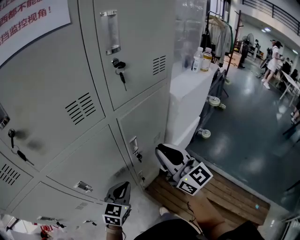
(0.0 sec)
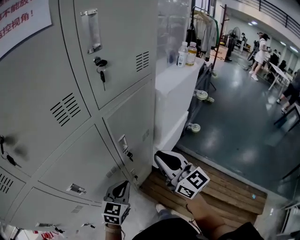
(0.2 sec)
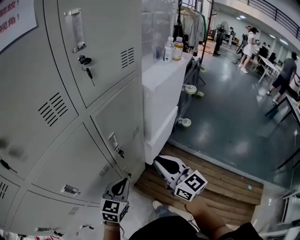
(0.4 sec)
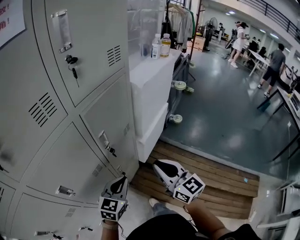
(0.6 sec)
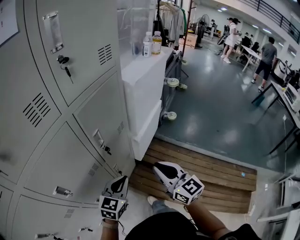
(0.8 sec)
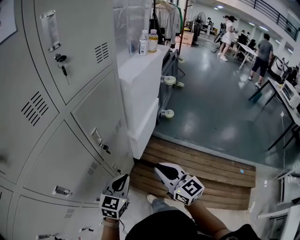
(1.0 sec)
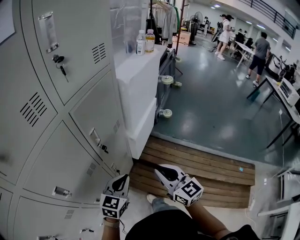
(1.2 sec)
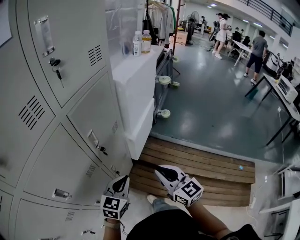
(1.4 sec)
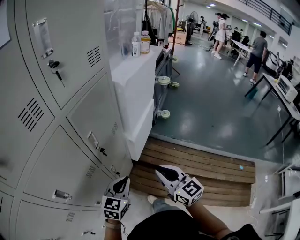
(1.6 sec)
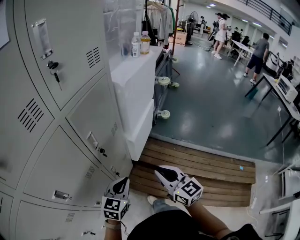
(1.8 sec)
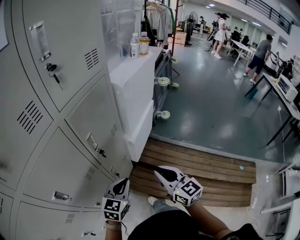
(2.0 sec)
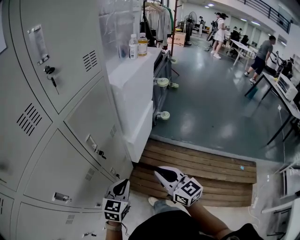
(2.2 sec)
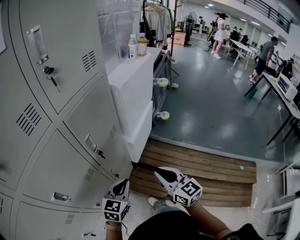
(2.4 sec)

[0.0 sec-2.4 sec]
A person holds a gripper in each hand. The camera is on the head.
0.0 sec to 1.2 sec: The left gripper heads to the right, covering about 10 cm, and changes its angle by roughly 20 degrees, while the right gripper heads downward, backward and to the right, covering approximately 20 cm, and rotates roughly 30 degrees.
1.2 sec to 2.4 sec: There are only small adjustments of the grippers.

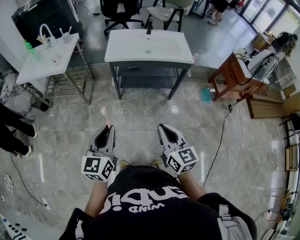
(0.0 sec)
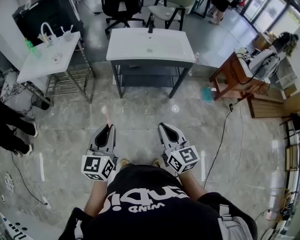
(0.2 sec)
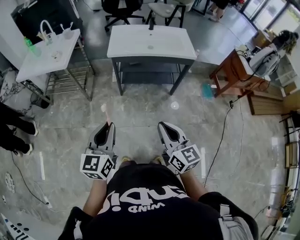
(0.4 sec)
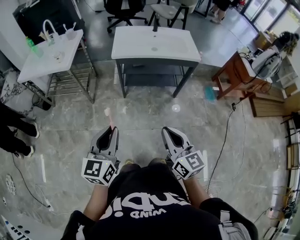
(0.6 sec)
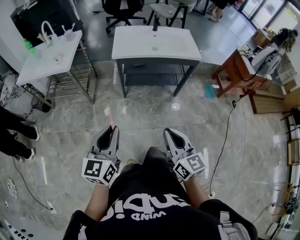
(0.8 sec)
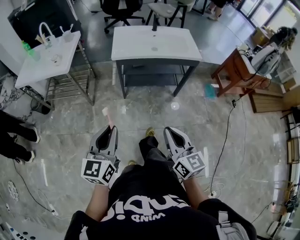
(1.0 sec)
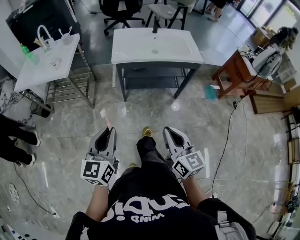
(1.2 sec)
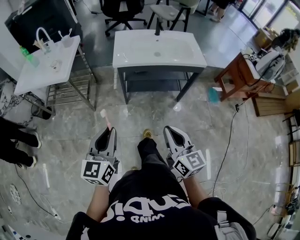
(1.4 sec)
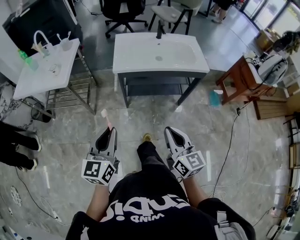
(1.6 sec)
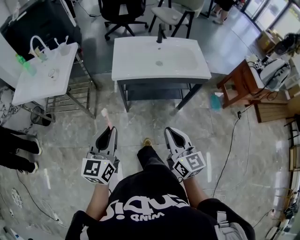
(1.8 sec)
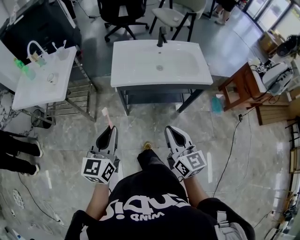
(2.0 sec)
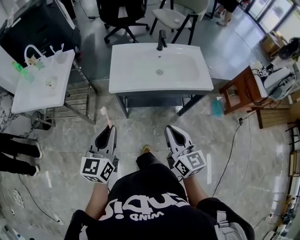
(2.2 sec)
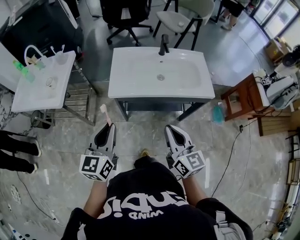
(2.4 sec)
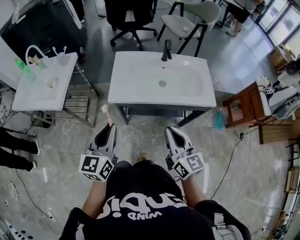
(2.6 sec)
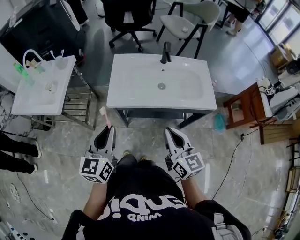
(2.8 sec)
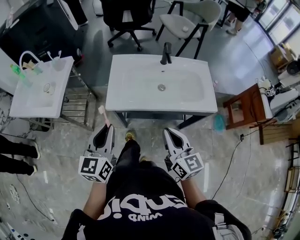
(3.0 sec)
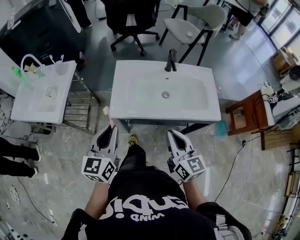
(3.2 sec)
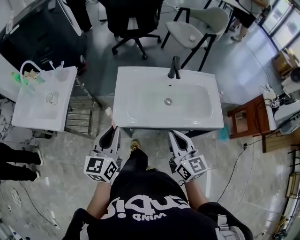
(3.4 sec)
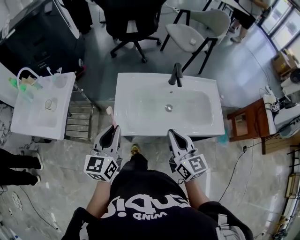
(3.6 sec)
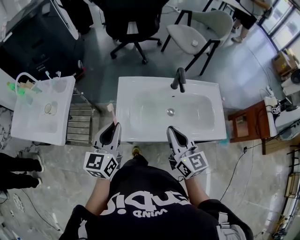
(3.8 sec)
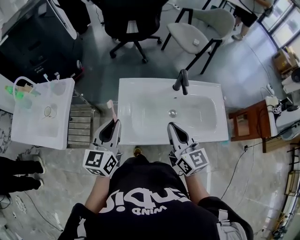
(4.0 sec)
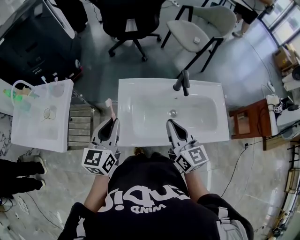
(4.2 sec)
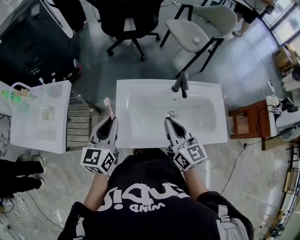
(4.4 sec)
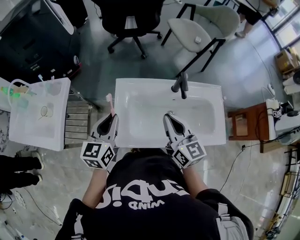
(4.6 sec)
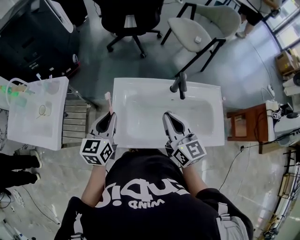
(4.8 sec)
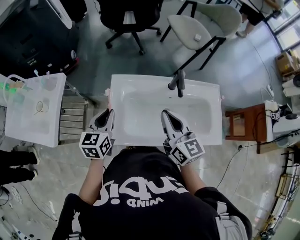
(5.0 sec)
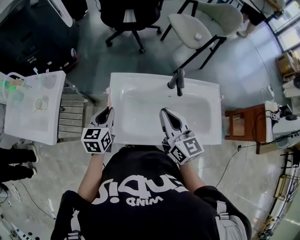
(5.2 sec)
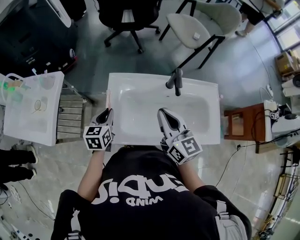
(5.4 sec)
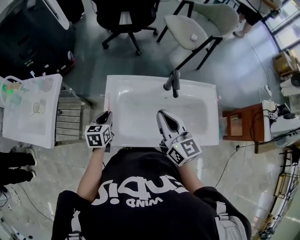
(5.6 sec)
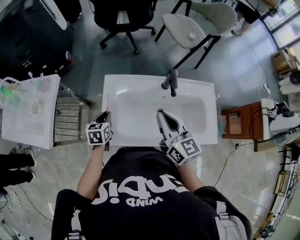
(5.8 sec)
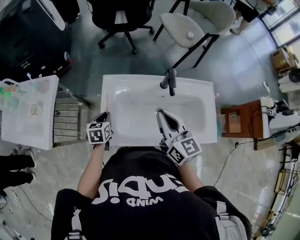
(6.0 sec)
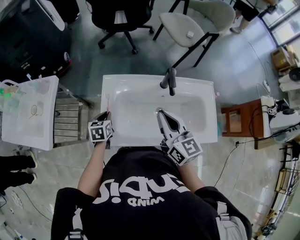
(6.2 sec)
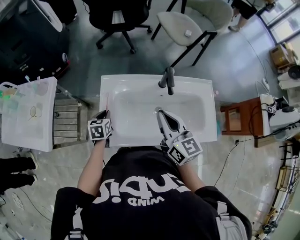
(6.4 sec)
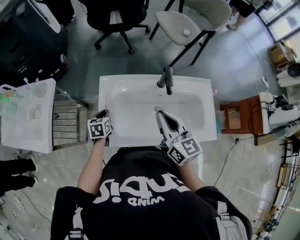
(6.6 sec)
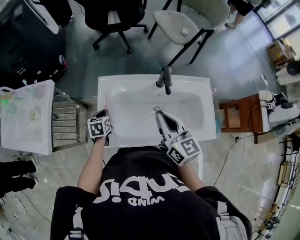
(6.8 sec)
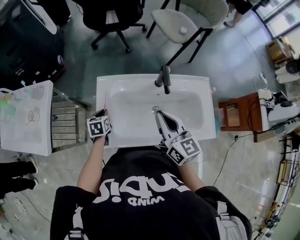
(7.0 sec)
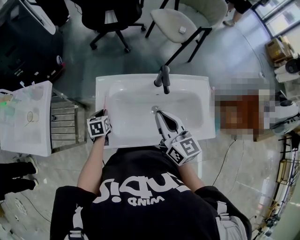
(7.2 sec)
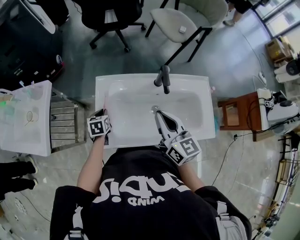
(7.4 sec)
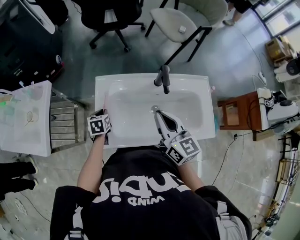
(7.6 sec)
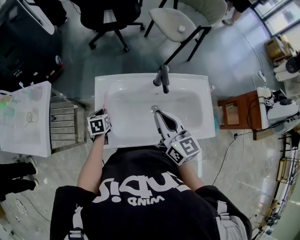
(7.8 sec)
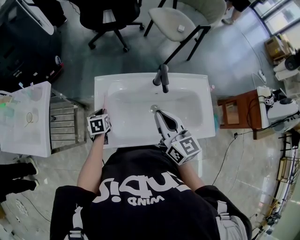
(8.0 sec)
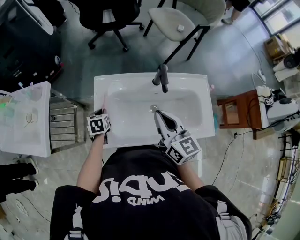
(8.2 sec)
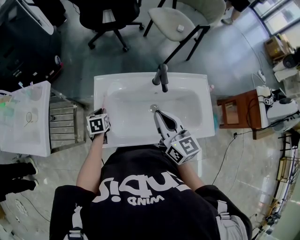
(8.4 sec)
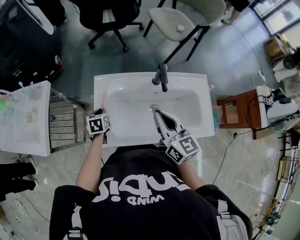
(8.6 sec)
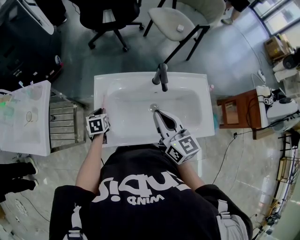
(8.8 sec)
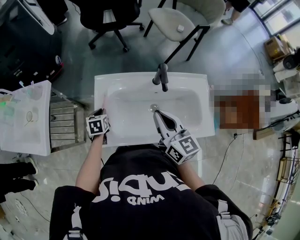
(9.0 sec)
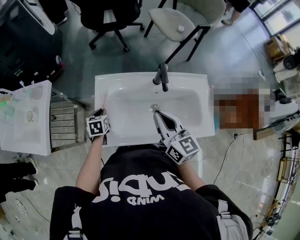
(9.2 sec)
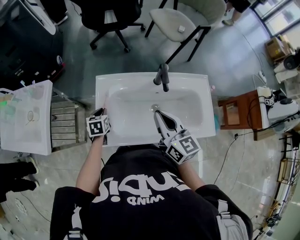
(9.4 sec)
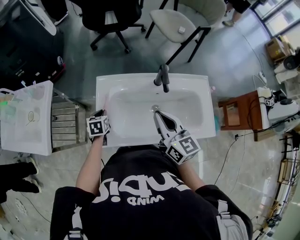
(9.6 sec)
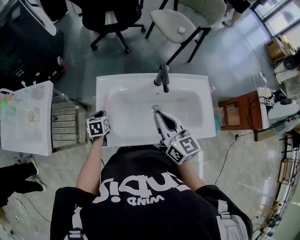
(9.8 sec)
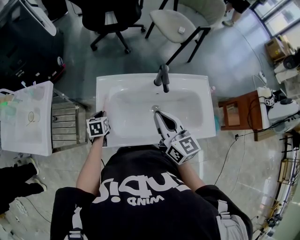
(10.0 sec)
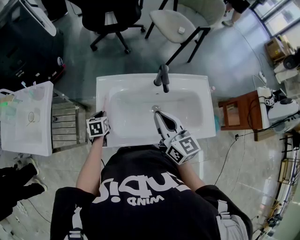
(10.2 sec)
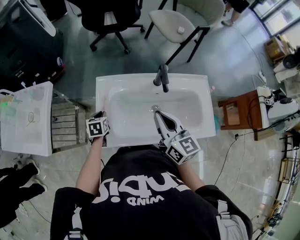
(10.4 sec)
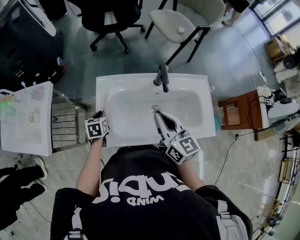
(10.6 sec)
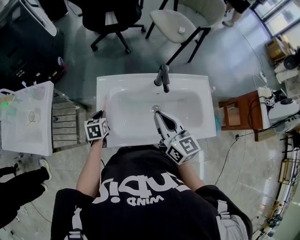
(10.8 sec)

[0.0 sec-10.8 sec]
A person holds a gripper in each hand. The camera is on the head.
0.0 sec to 1.6 sec: The grippers both shift forward and to the left by some 15 cm.
1.6 sec to 3.0 sec: Both grippers move forward, approximately 30 cm.
3.0 sec to 4.6 sec: The grippers both shift forward by roughly 30 cm.
4.6 sec to 6.2 sec: The left gripper goes some 20 cm downward, and tips its fingers downward by approximately 30 degrees.
6.2 sec to 7.8 sec: The grippers make only small movements.
7.8 sec to 9.2 sec: Neither gripper changes place.
9.2 sec to 10.8 sec: There are only small adjustments of the grippers.

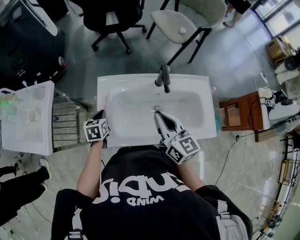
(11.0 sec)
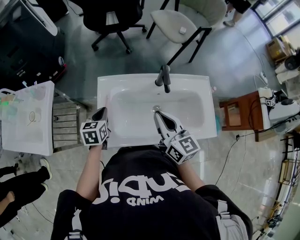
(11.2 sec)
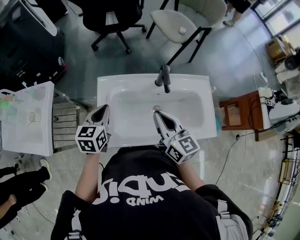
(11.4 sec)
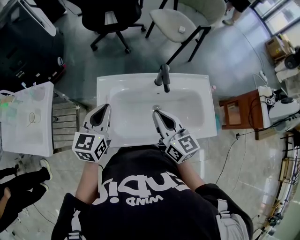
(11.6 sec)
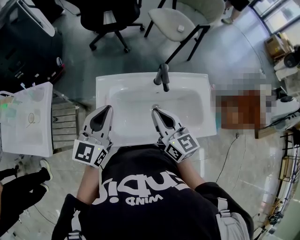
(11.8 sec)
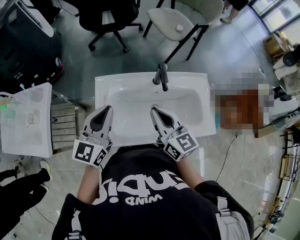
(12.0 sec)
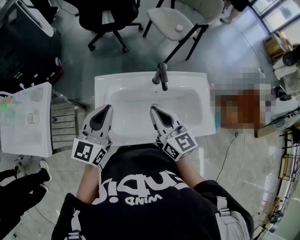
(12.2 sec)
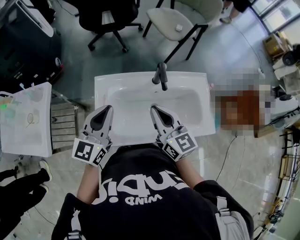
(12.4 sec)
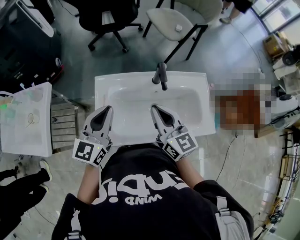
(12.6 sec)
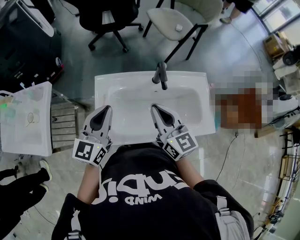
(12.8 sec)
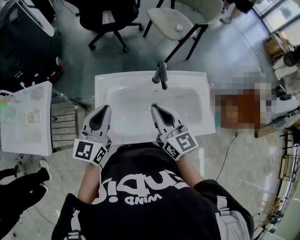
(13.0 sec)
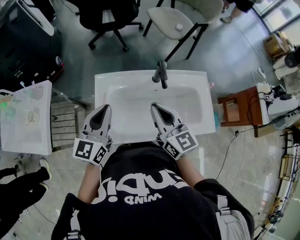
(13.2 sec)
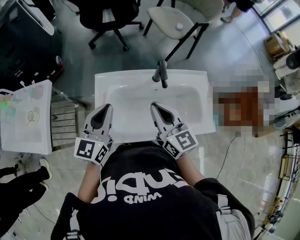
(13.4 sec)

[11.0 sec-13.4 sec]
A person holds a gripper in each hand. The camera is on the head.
11.0 sec to 12.2 sec: The left gripper goes about 25 cm upward, and tilts its fingers approximately 40 degrees upward.
12.2 sec to 13.4 sec: The grippers make only small movements.

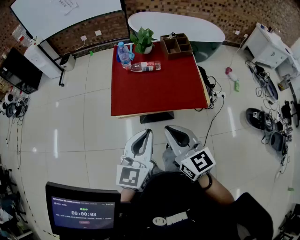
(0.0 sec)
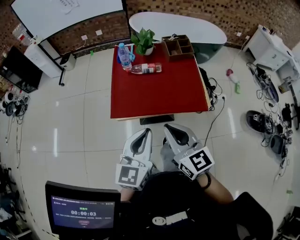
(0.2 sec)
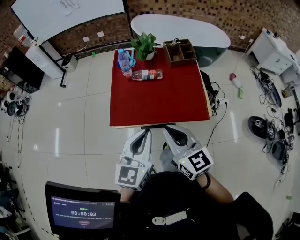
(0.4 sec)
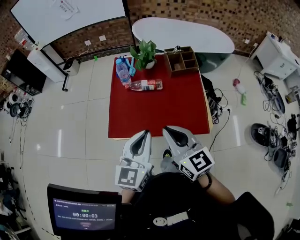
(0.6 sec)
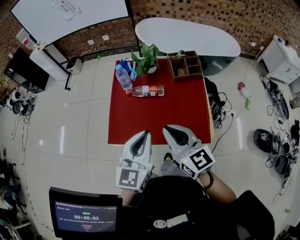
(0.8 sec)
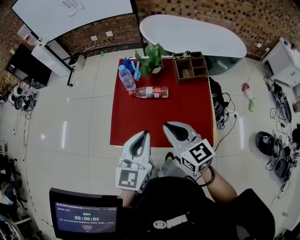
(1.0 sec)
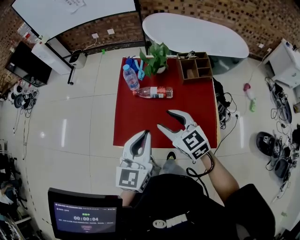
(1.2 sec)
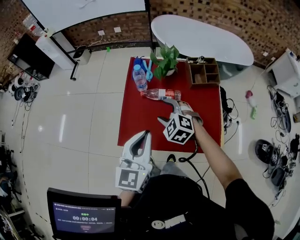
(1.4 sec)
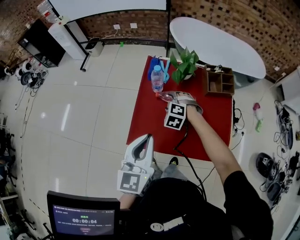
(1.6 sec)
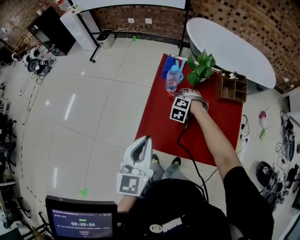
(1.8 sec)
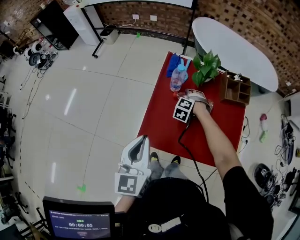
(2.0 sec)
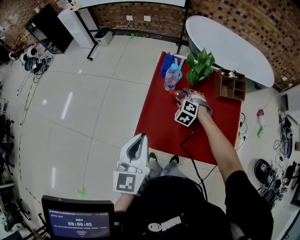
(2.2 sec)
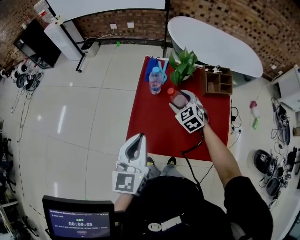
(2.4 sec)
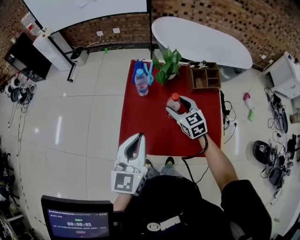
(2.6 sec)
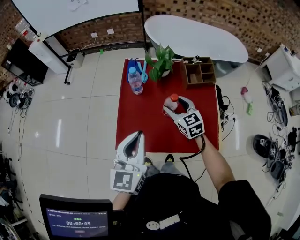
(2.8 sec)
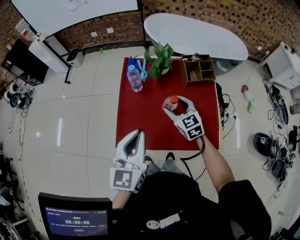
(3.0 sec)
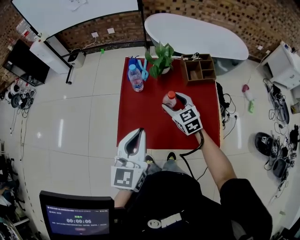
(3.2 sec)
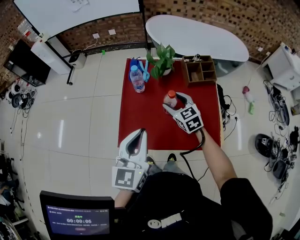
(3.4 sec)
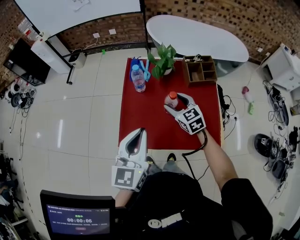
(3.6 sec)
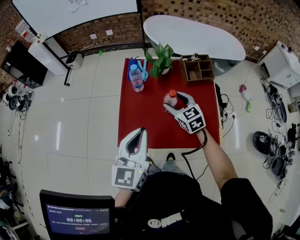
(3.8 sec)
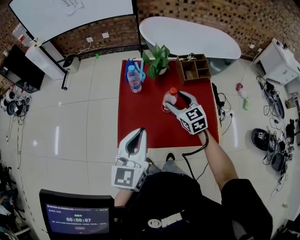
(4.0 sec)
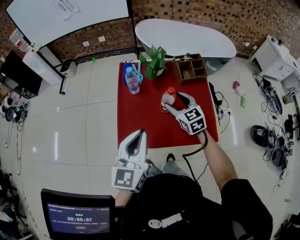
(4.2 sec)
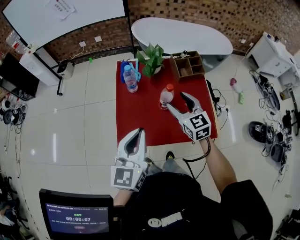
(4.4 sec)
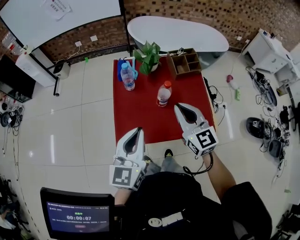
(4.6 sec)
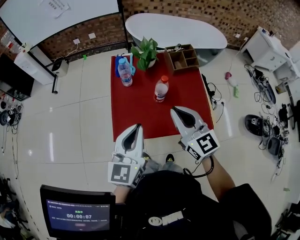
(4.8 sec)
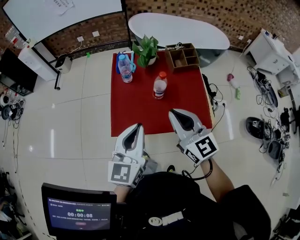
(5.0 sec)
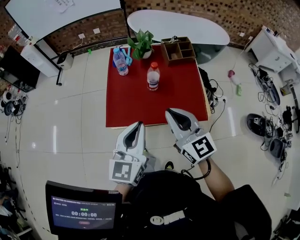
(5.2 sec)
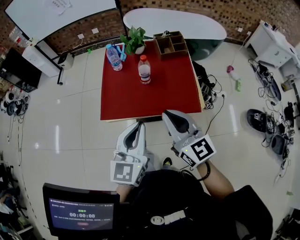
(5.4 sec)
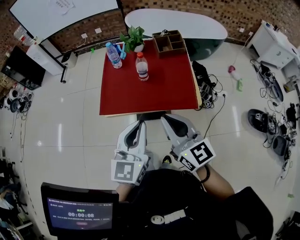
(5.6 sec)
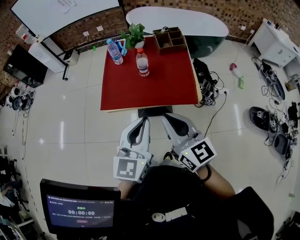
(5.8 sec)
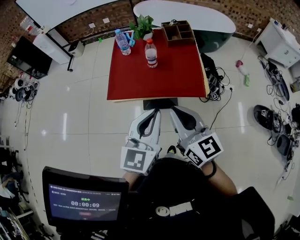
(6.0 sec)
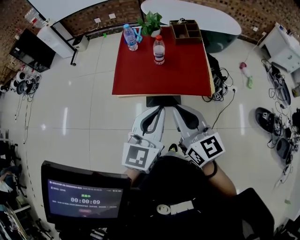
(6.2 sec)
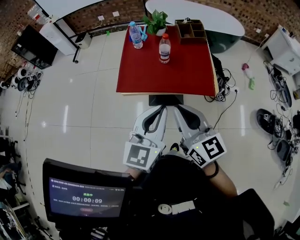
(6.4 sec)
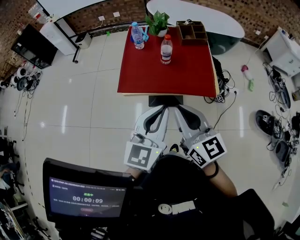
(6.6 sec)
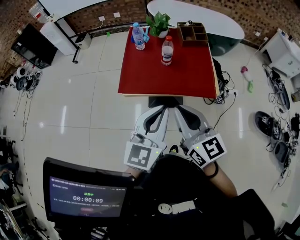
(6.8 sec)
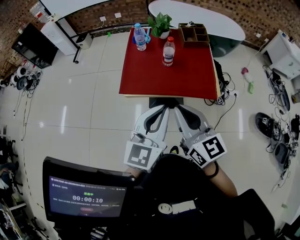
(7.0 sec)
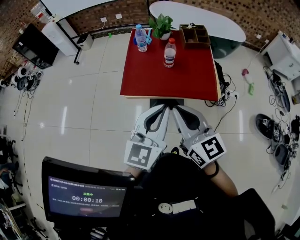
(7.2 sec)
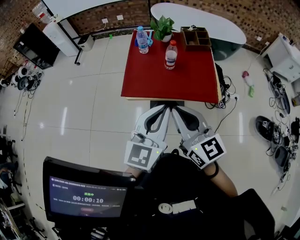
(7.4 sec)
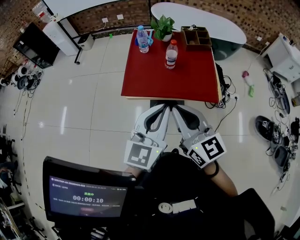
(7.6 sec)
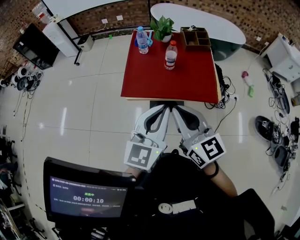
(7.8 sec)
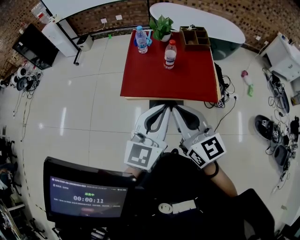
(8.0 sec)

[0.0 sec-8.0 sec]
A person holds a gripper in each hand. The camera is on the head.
0.0 sec to 1.6 sec: The right gripper goes roughly 50 cm forward and downward, points its fingers some 50 degrees further downward, and opens its fingers. The left gripper shifts about 25 cm forward.
1.6 sec to 3.2 sec: The right gripper shifts roughly 15 cm to the right and upward, and rolls clockwise, seen from behind, by roughly 50 degrees, while the left gripper reaches some 10 cm to the left, then returns.
3.2 sec to 4.8 sec: The right gripper goes approximately 25 cm backward and upward, swivels approximately 30 degrees, and closes its fingers.
4.8 sec to 6.4 sec: The left gripper goes roughly 25 cm backward and to the right. Meanwhile the right gripper is displaced backward by about 25 cm.
6.4 sec to 8.0 sec: The grippers stay close to where they were, moving slightly.
